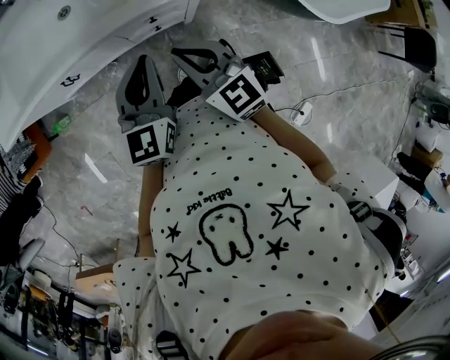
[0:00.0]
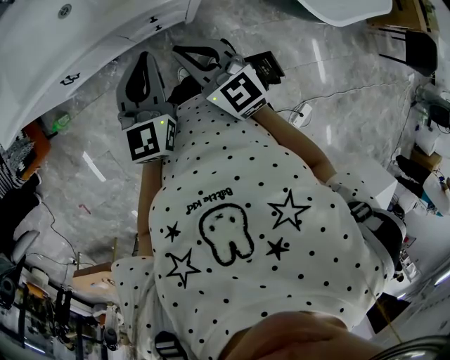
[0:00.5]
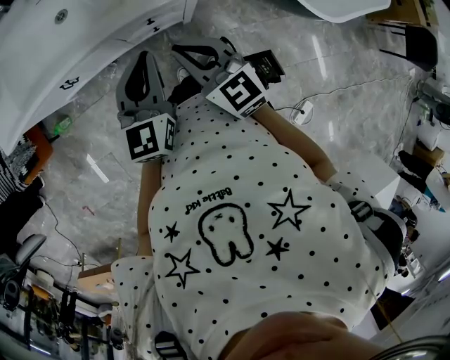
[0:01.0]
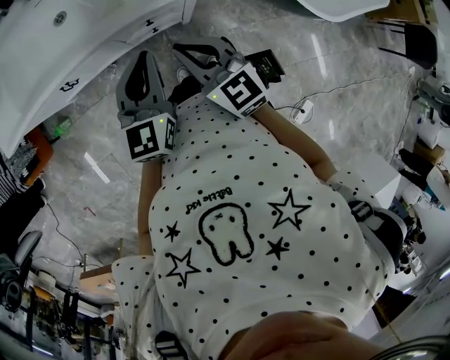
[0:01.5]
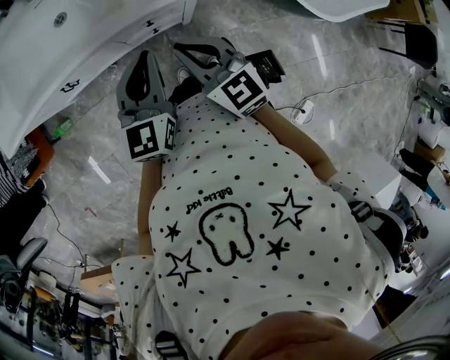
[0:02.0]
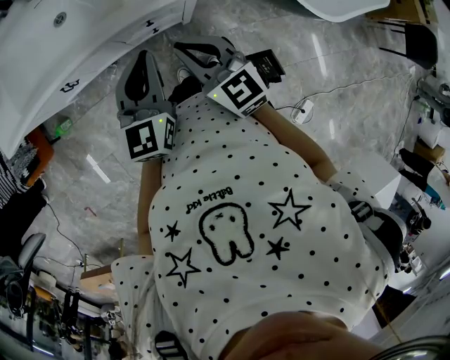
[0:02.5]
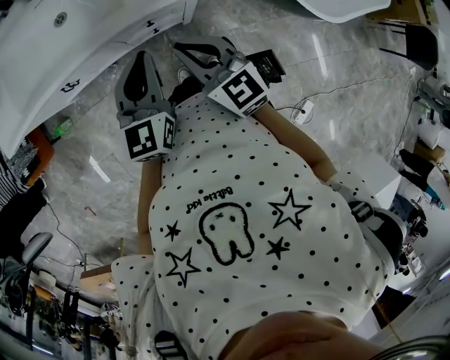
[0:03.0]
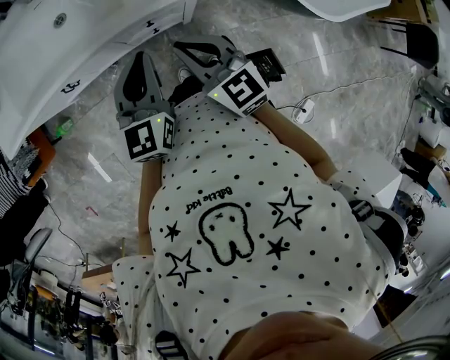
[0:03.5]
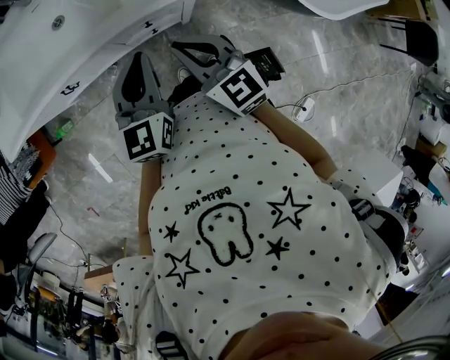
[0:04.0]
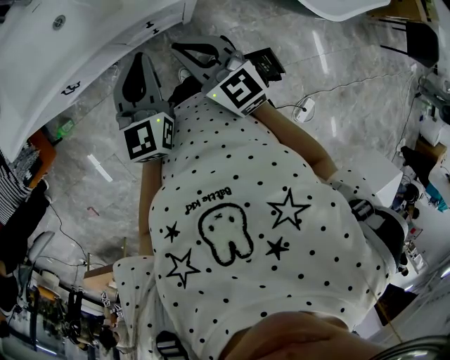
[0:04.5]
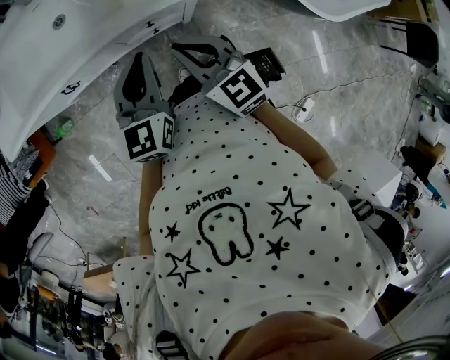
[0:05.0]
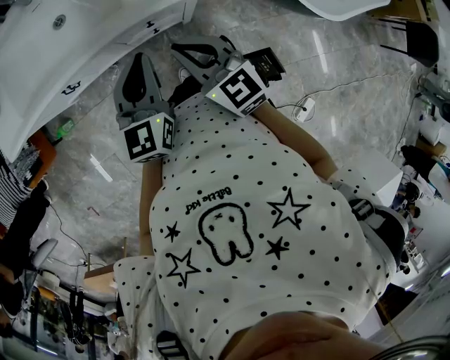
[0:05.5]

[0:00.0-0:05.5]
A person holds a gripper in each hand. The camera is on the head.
0:00.0 to 0:02.0: The grippers move only a little.
0:02.0 to 0:03.5: Neither gripper changes place.
0:03.5 to 0:05.5: Both grippers stay put.

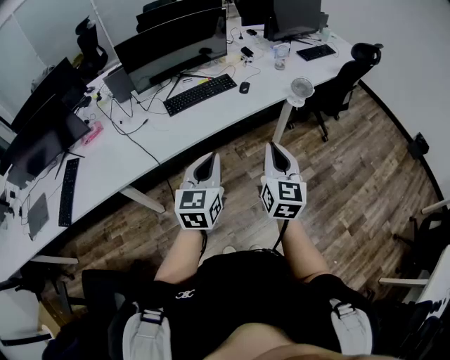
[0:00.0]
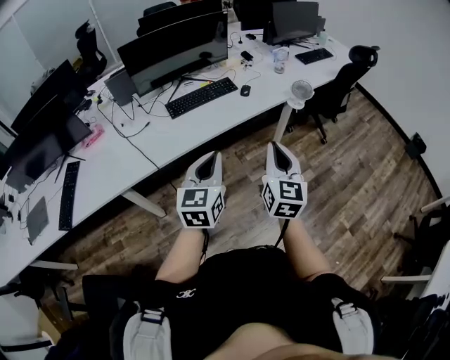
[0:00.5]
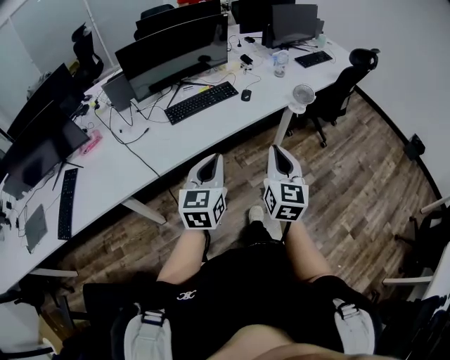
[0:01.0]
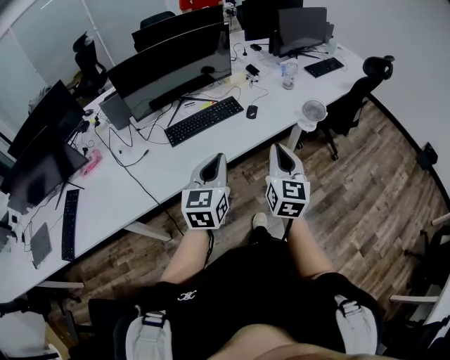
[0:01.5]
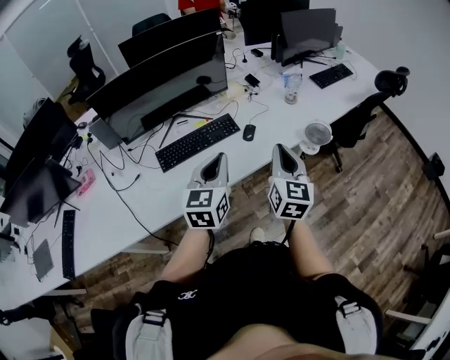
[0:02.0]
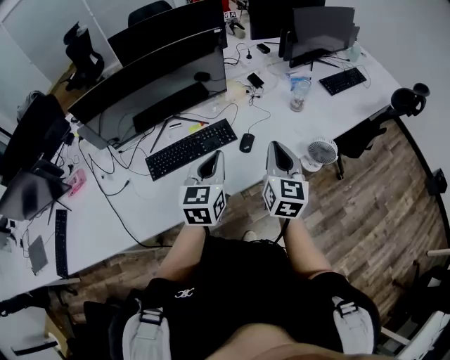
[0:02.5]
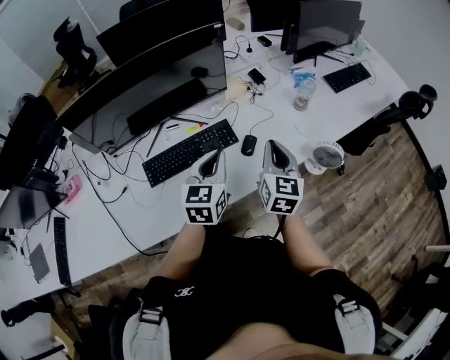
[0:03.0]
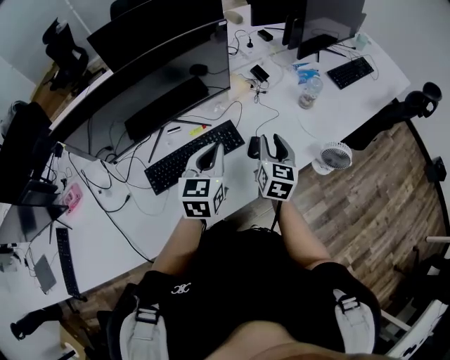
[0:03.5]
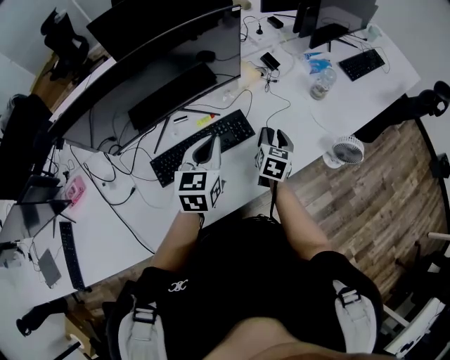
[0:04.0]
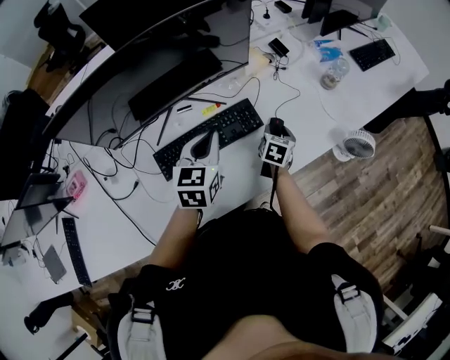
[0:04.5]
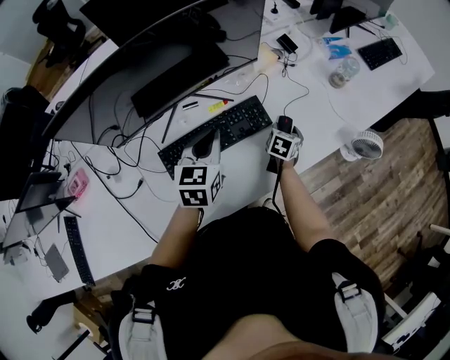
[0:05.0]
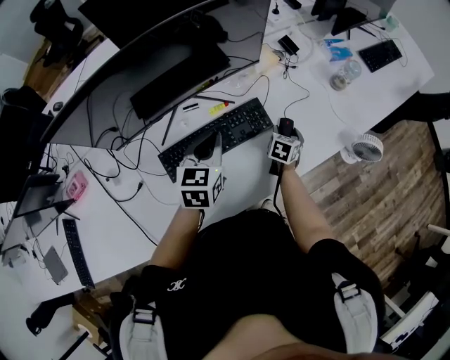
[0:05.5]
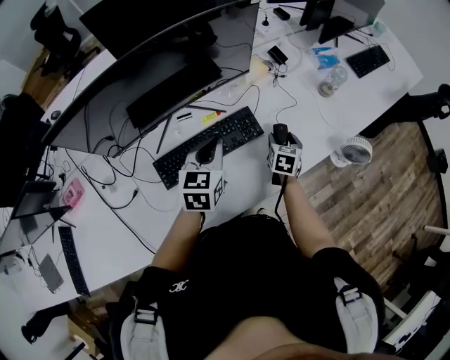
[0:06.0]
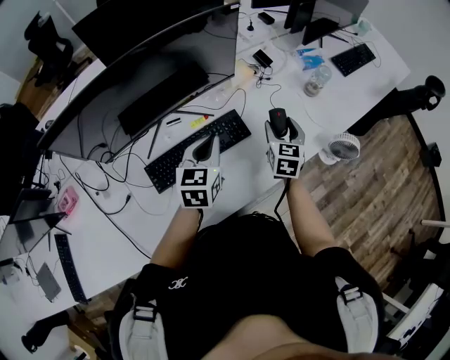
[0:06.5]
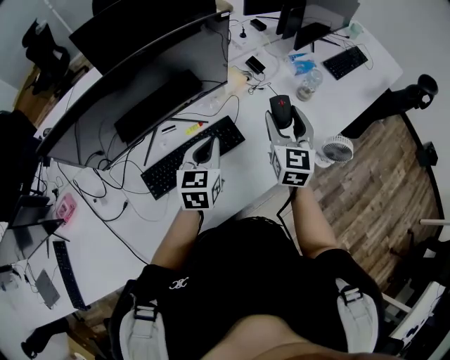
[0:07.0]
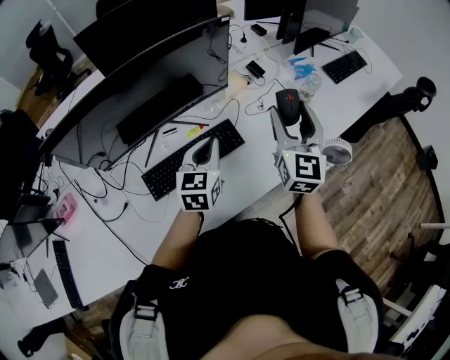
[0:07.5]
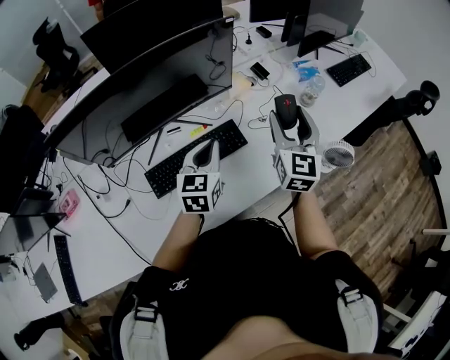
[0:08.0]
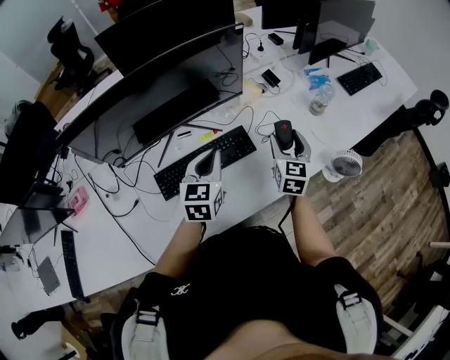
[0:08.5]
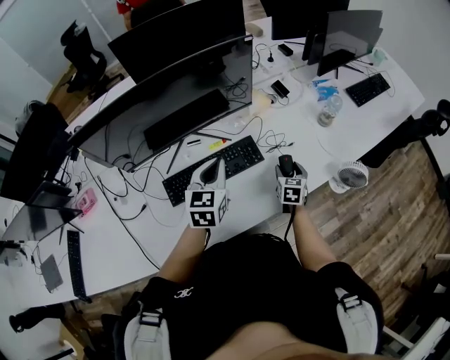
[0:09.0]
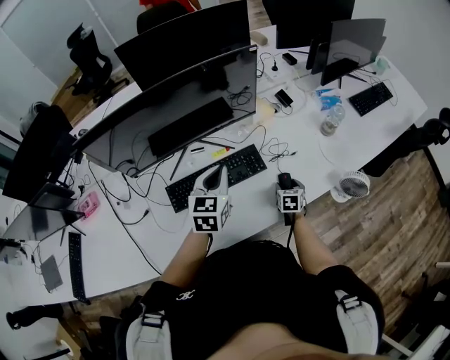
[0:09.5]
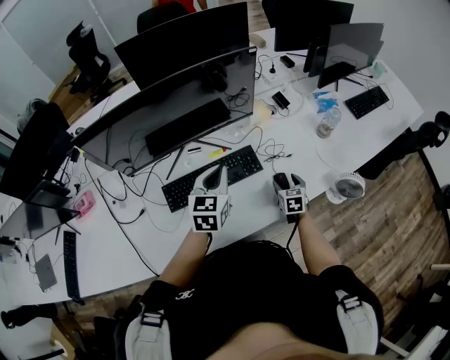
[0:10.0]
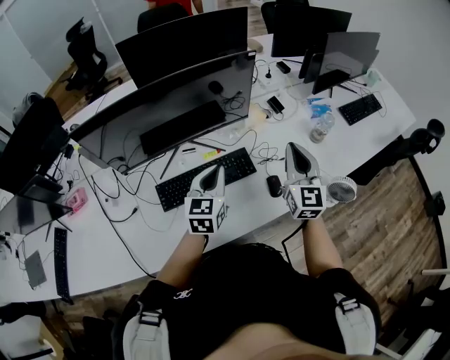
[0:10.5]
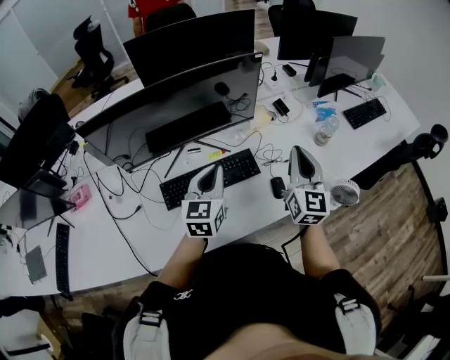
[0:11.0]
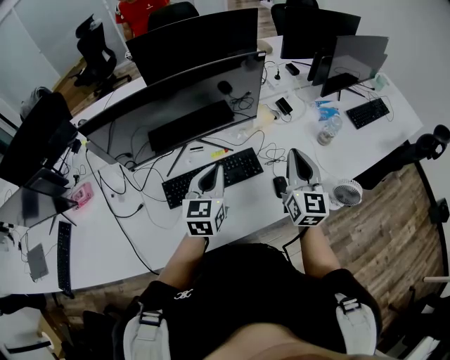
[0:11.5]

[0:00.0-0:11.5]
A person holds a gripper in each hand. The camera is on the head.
0:00.0 to 0:02.0: The grippers both shift forward by approximately 30 cm.
0:02.0 to 0:04.0: The right gripper shifts approximately 35 cm forward and downward, changes its angle by some 30 degrees, and opens up; the left gripper goes roughly 25 cm forward and to the left.
0:04.0 to 0:06.0: The right gripper is displaced downward by about 10 cm, and opens its fingers; the left gripper moves downward, about 5 cm.
0:06.0 to 0:07.5: The left gripper shifts by some 5 cm. Meanwhile the right gripper travels upward by approximately 30 cm, and angles its fingers upward, by roughly 40 degrees.
0:07.5 to 0:09.5: The right gripper heads downward, covering roughly 40 cm, and points its fingers some 50 degrees further downward.
0:09.5 to 0:11.5: The right gripper travels upward by roughly 35 cm, angles its fingers upward, by roughly 50 degrees, and closes up.

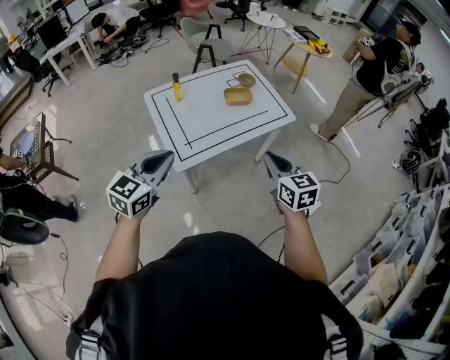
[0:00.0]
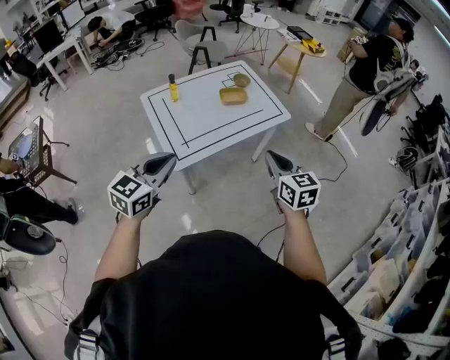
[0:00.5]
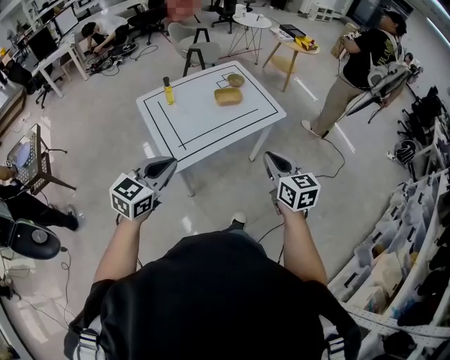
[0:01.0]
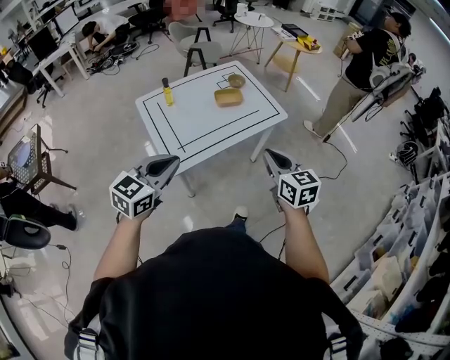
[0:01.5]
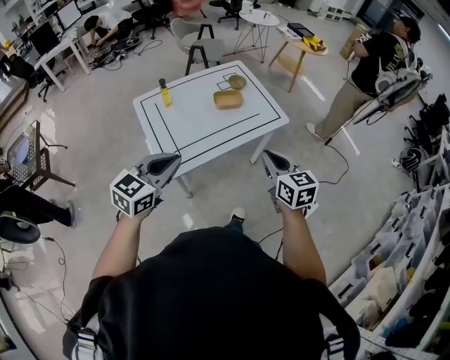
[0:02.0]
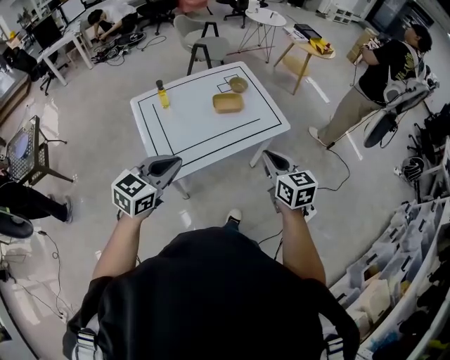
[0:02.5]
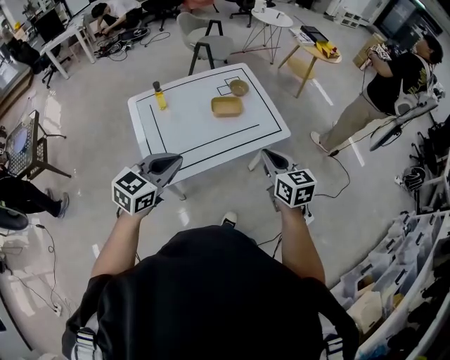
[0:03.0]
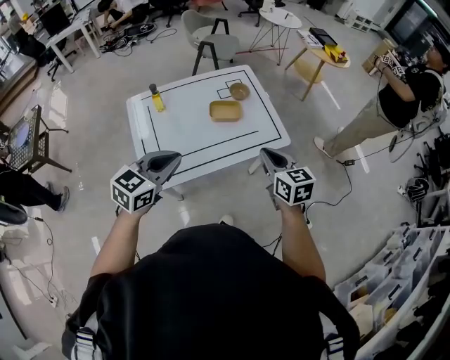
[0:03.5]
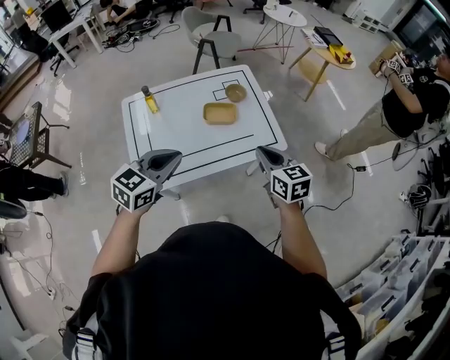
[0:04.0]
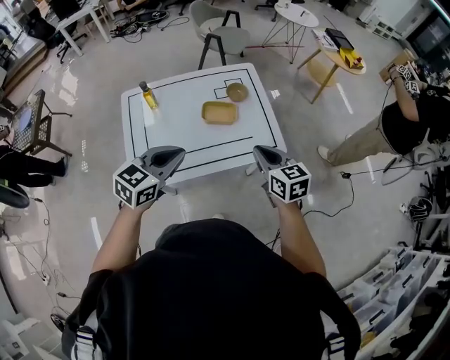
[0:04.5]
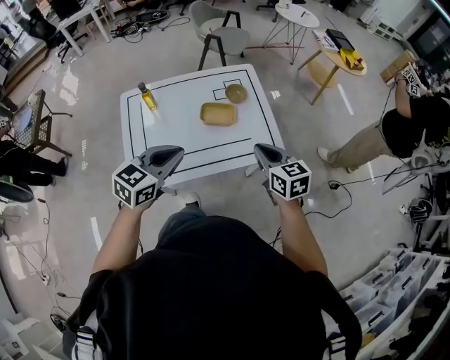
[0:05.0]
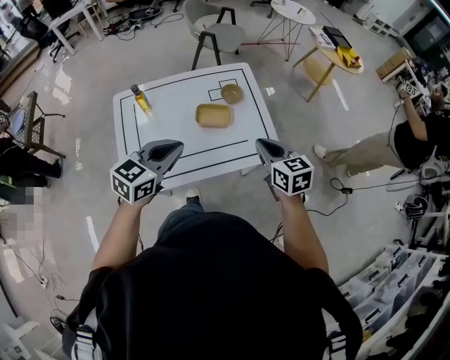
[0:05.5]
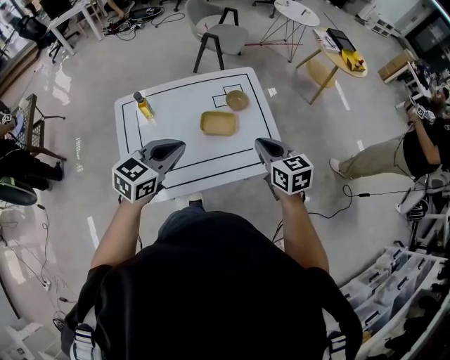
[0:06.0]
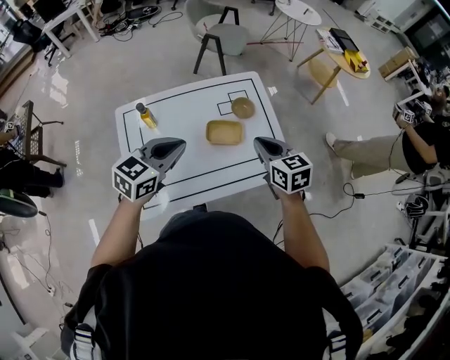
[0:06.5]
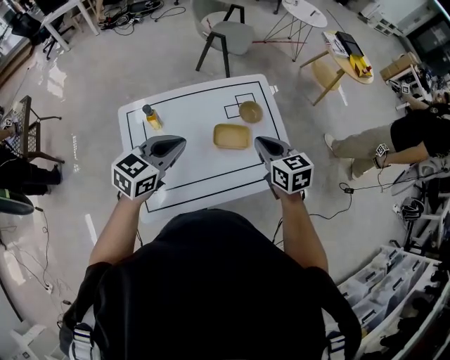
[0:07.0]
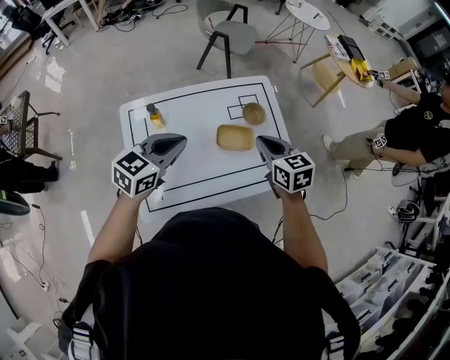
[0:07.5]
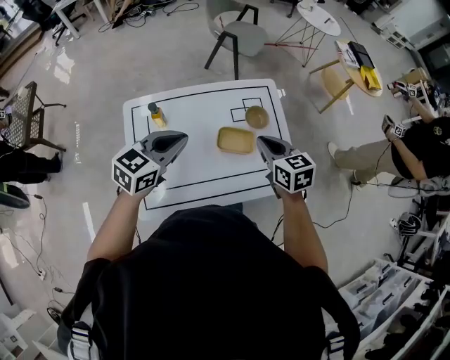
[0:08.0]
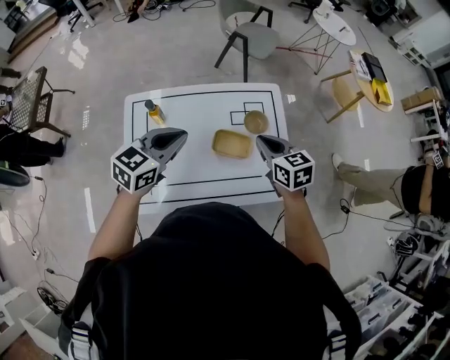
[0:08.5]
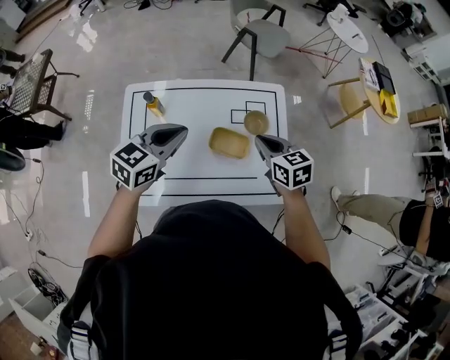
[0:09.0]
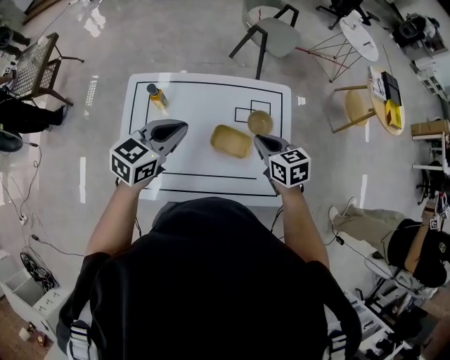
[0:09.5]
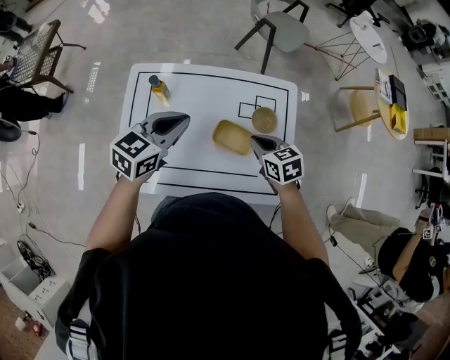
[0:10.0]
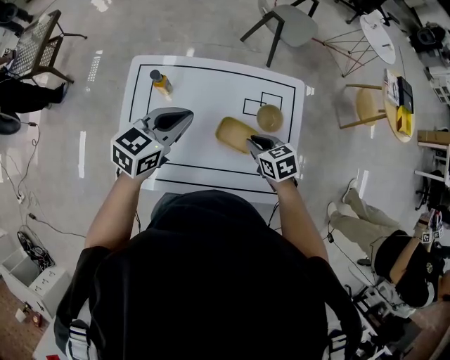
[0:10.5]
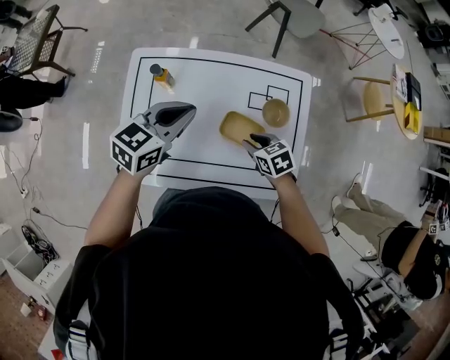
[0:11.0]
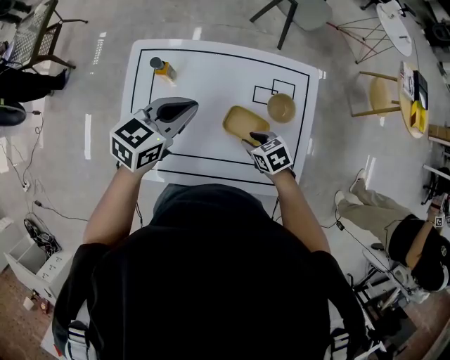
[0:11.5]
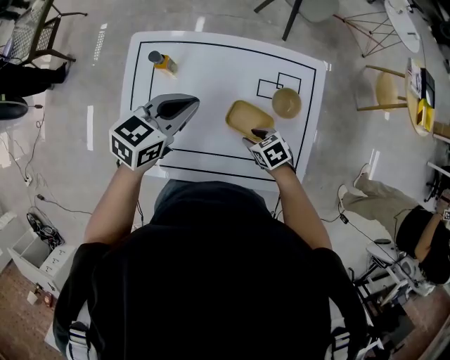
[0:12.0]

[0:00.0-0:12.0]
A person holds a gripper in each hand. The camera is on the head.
0:00.0 to 0:02.0: The right gripper travels forward by about 5 cm. The left gripper moves to the right and forward, about 10 cm.
0:02.0 to 0:04.0: The left gripper heads forward and to the right, covering approximately 20 cm; the right gripper heads forward, covering roughly 20 cm.
0:04.0 to 0:06.0: The two grippers go roughly 15 cm forward.
0:06.0 to 0:08.0: Both grippers travel together forward and to the left, some 15 cm.
0:08.0 to 0:10.0: The right gripper travels downward by about 10 cm, and changes its angle by roughly 20 degrees; the left gripper changes place by approximately 5 cm.
0:10.0 to 0:12.0: The left gripper heads downward, covering roughly 5 cm. Meanwhile the right gripper moves downward, roughly 15 cm, turns by roughly 20 degrees, and opens up.
